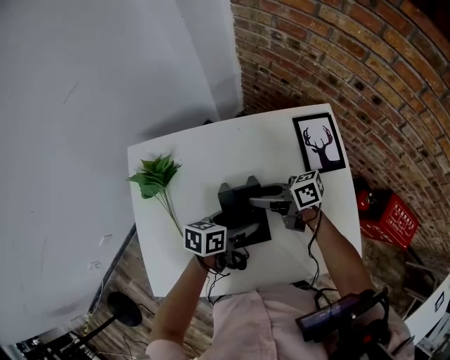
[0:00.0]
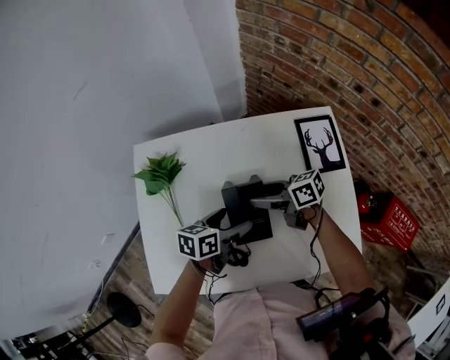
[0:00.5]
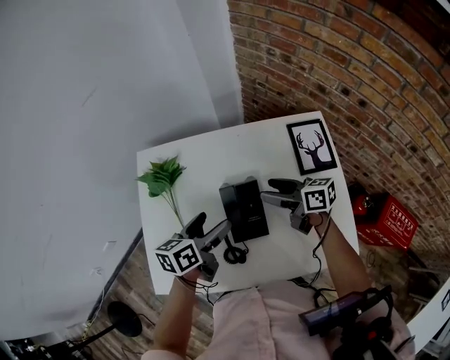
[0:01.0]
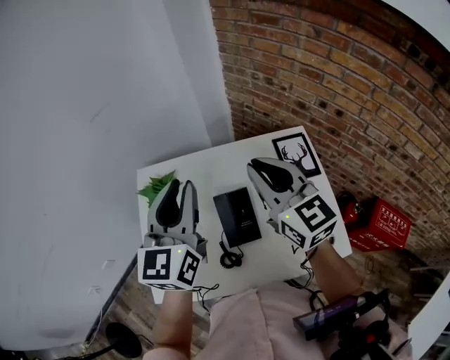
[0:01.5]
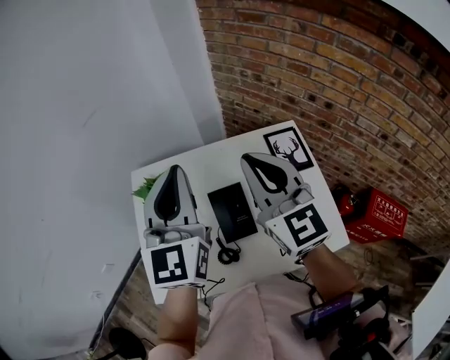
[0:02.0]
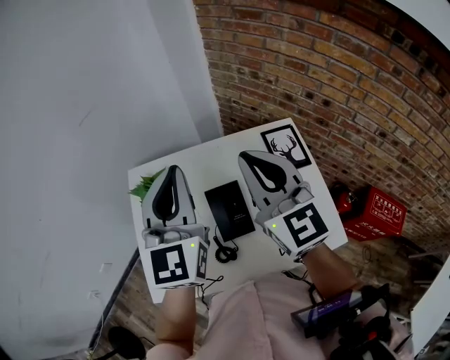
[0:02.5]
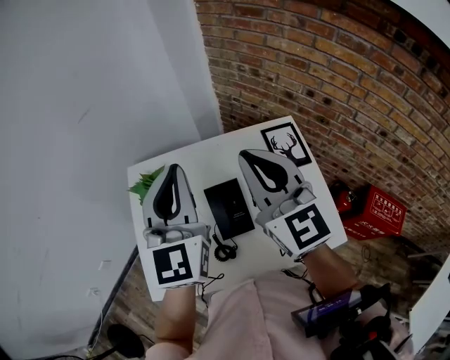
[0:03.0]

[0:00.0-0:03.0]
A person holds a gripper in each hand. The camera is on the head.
0:00.0 to 0:01.5: The two grippers go some 35 cm upward. The left gripper tips its fingers upward by some 30 degrees, and closes. Meanwhile the right gripper changes its angle by some 70 degrees, and closes its fingers.
0:01.5 to 0:03.0: The right gripper moves about 5 cm.

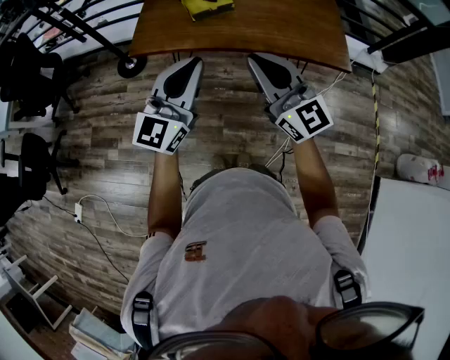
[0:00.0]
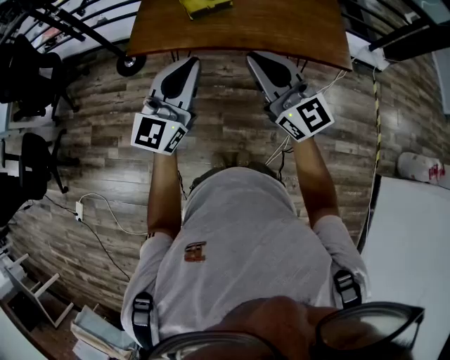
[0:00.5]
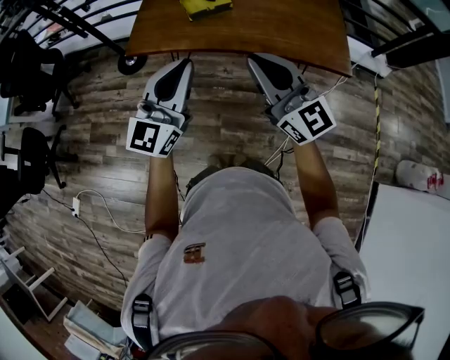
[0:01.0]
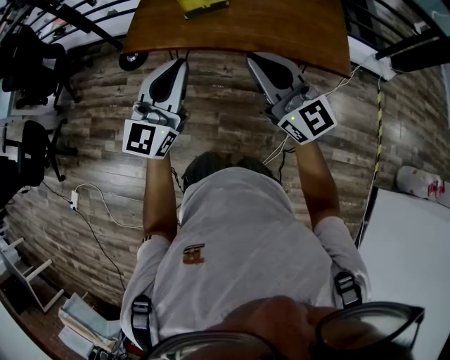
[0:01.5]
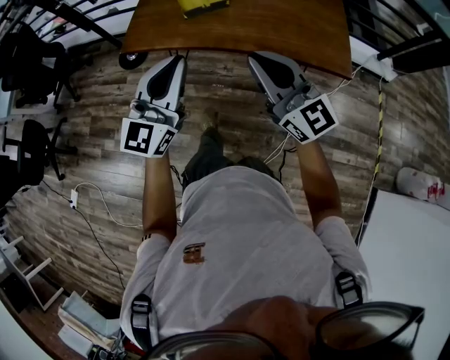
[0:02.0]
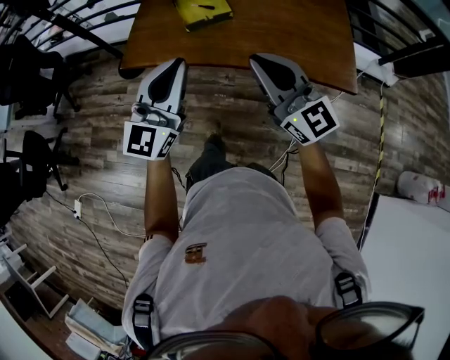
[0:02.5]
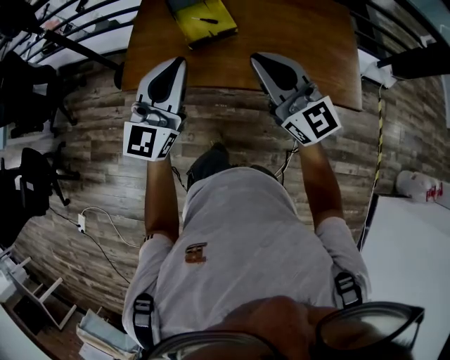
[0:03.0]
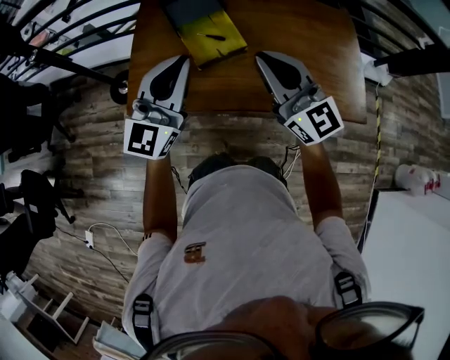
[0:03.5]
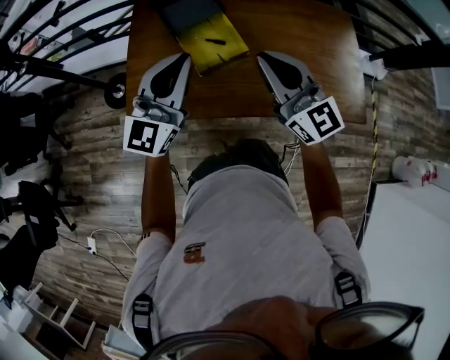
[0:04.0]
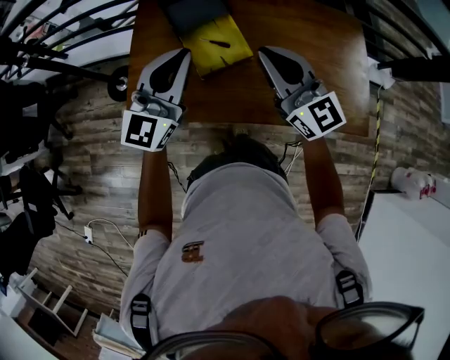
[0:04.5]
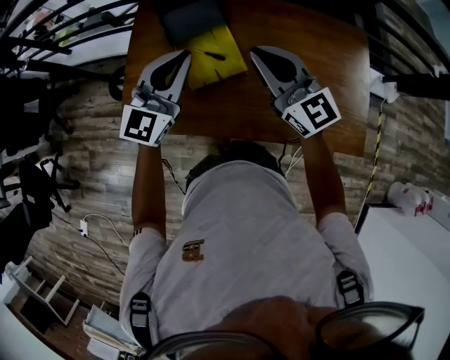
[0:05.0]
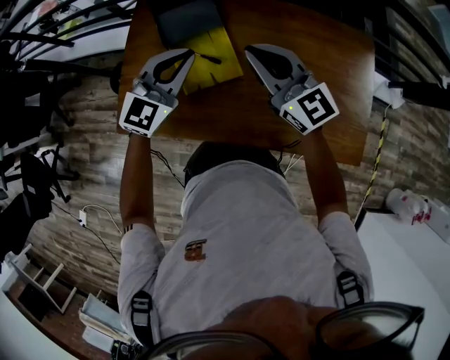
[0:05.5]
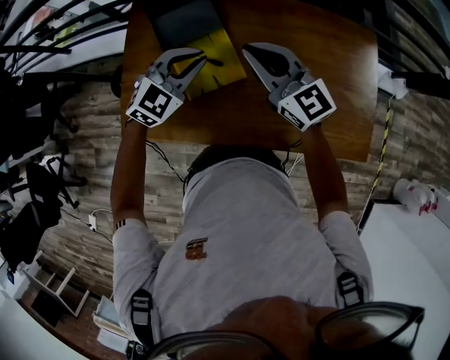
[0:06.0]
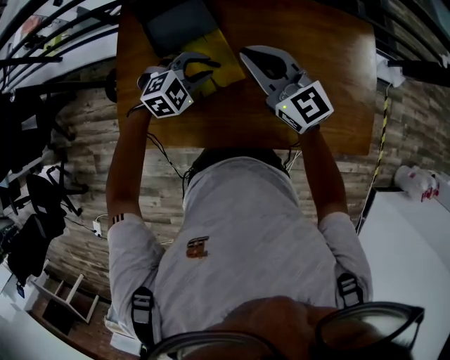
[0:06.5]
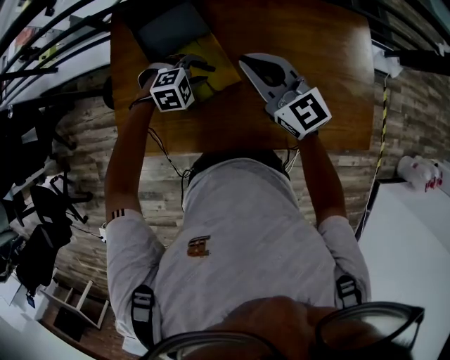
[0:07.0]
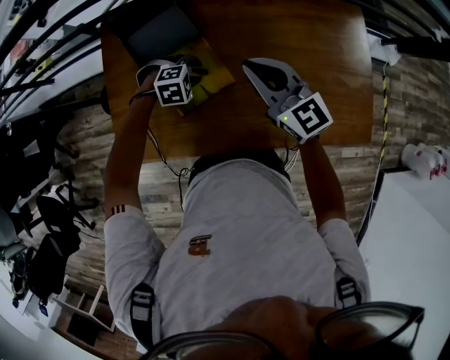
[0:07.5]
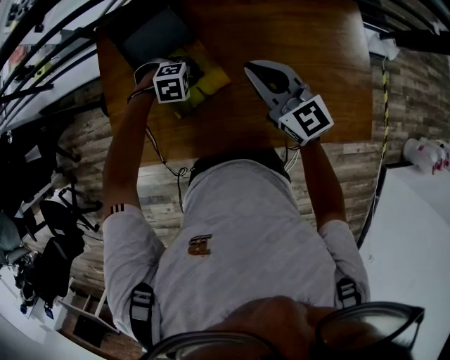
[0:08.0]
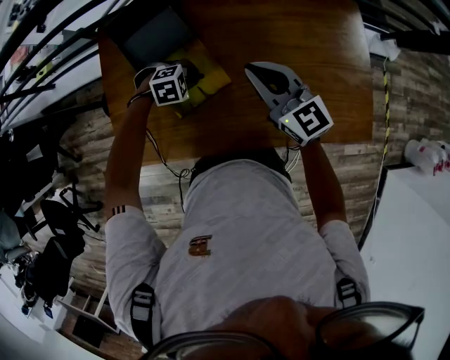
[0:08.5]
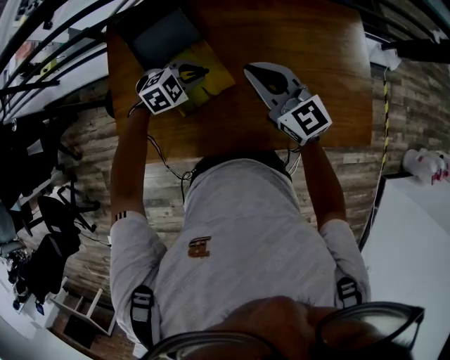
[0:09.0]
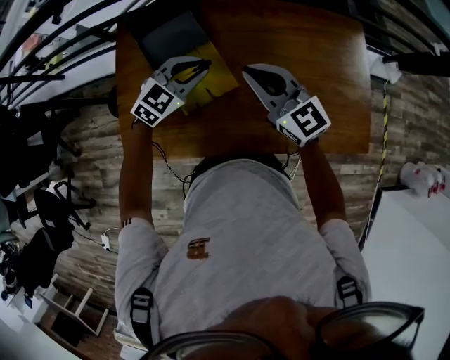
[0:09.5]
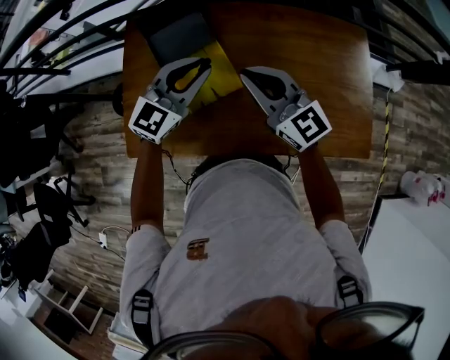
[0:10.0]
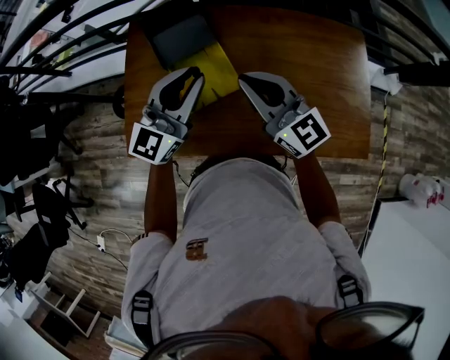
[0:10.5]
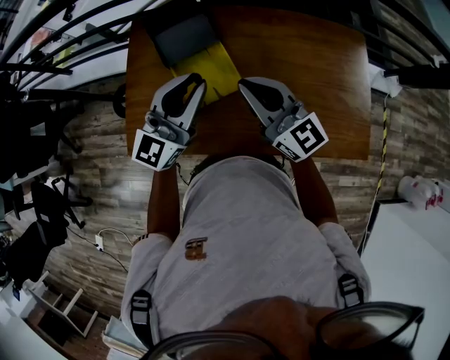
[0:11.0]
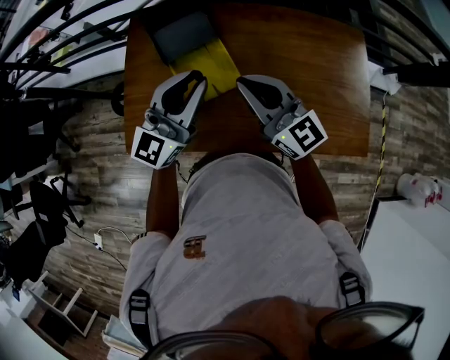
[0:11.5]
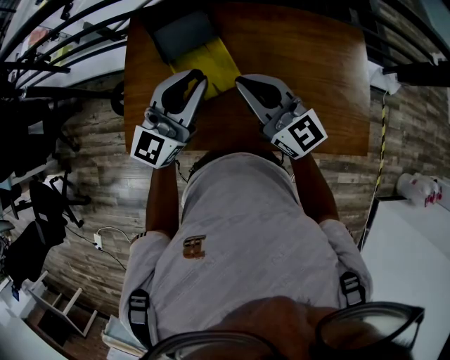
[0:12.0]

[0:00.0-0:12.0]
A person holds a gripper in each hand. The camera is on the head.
0:00.0 to 0:02.0: Both grippers travel together to the right, some 10 cm.
0:02.0 to 0:04.0: The two grippers travel together, forward, some 50 cm.
0:04.0 to 0:06.0: The right gripper heads forward, covering some 25 cm, while the left gripper heads forward, downward and to the right, covering approximately 30 cm, and tilts its fingers roughly 40 degrees downward.
0:06.0 to 0:08.0: The left gripper moves downward, approximately 20 cm, angles its fingers downward, by roughly 50 degrees, and opens its fingers. The right gripper shifts by approximately 10 cm.
0:08.0 to 0:10.0: The right gripper moves approximately 10 cm, while the left gripper is displaced upward by roughly 25 cm, and tilts its fingers roughly 70 degrees upward.
0:10.0 to 0:12.0: The right gripper shifts by approximately 5 cm; the left gripper goes roughly 10 cm upward and backward, and changes its angle by about 20 degrees.

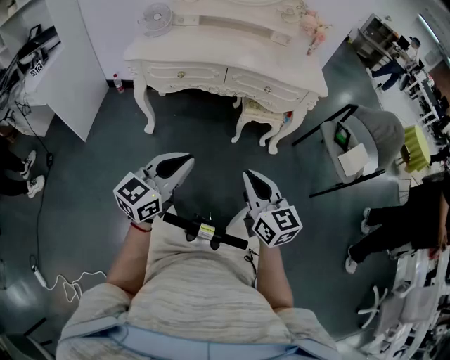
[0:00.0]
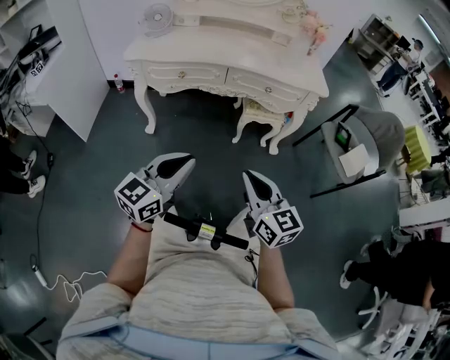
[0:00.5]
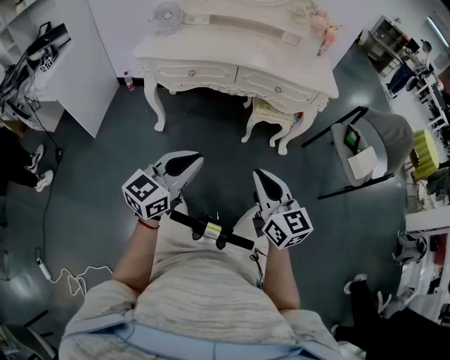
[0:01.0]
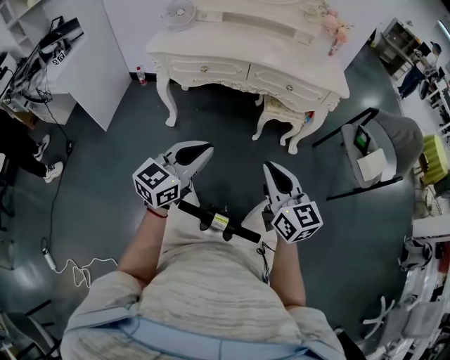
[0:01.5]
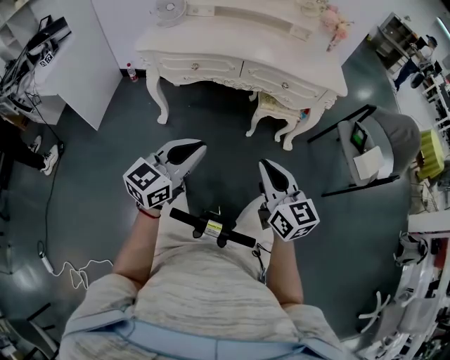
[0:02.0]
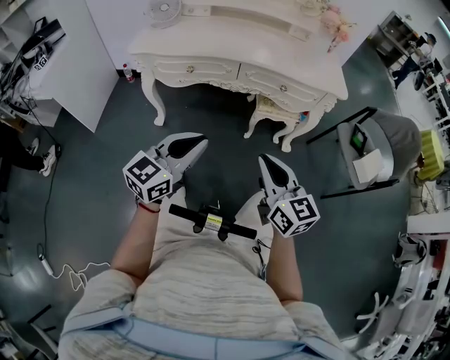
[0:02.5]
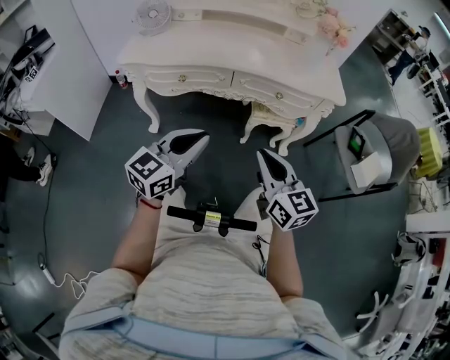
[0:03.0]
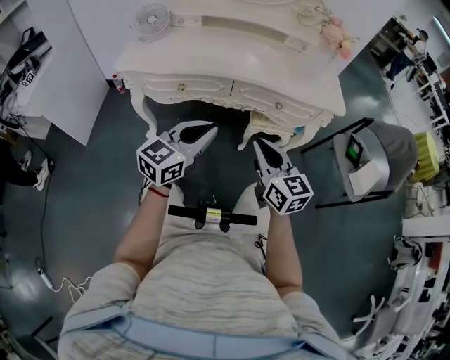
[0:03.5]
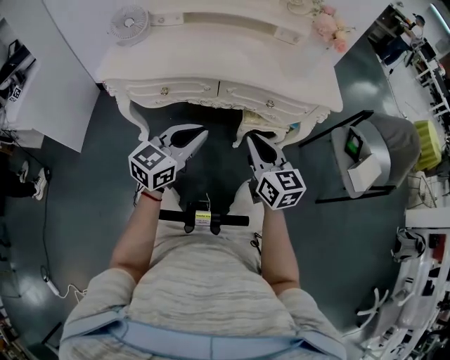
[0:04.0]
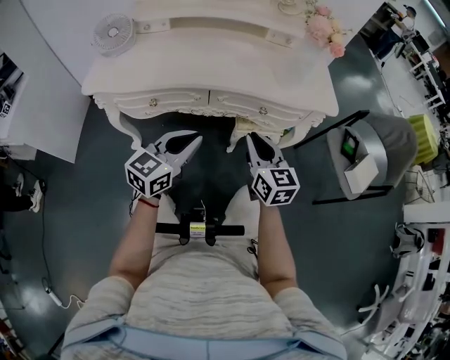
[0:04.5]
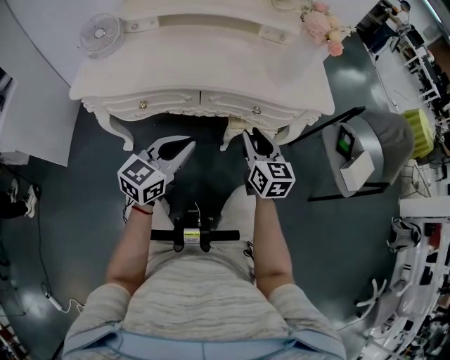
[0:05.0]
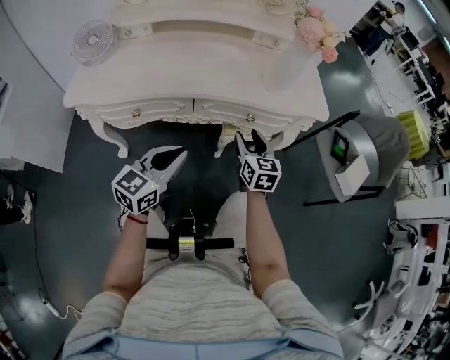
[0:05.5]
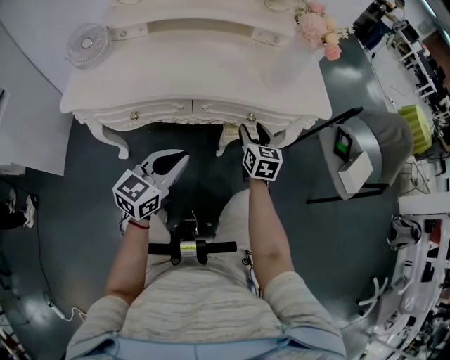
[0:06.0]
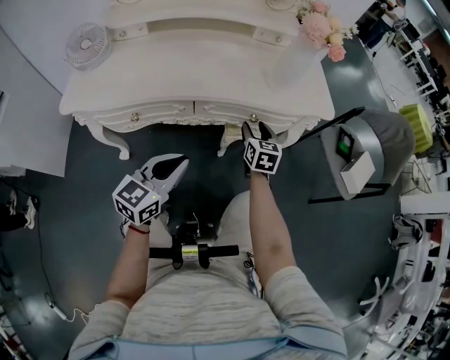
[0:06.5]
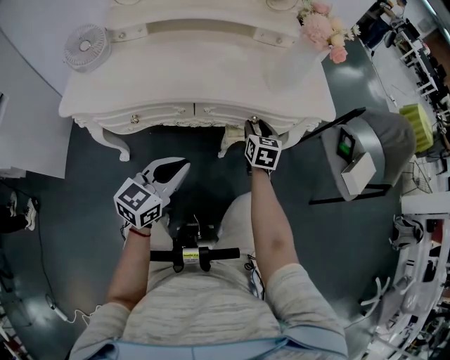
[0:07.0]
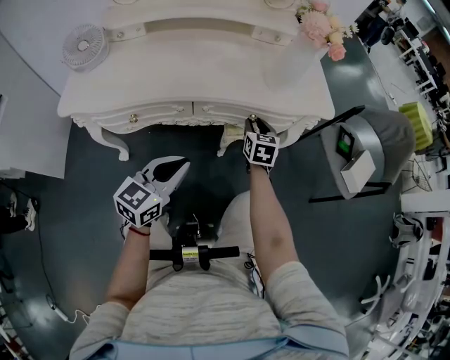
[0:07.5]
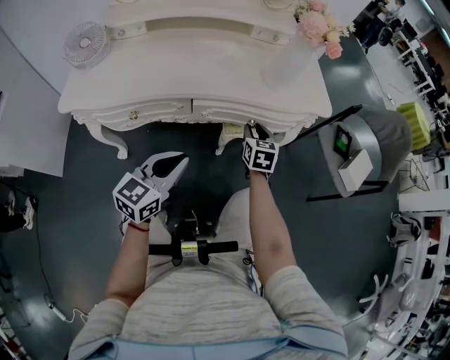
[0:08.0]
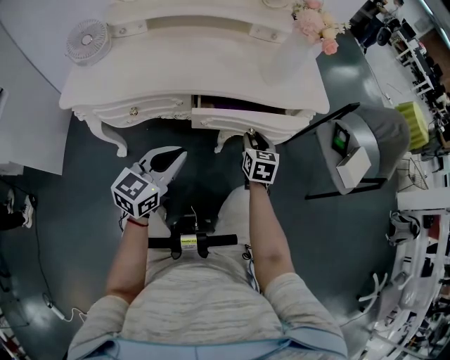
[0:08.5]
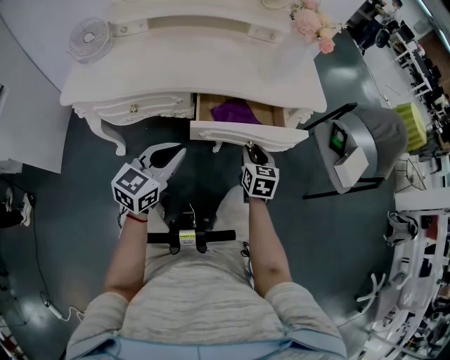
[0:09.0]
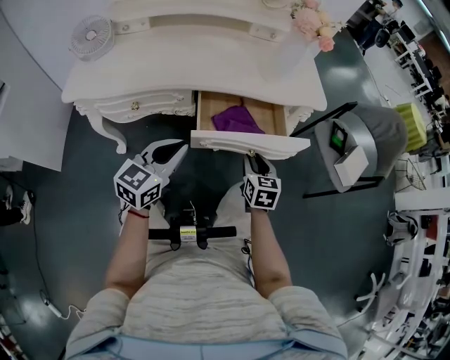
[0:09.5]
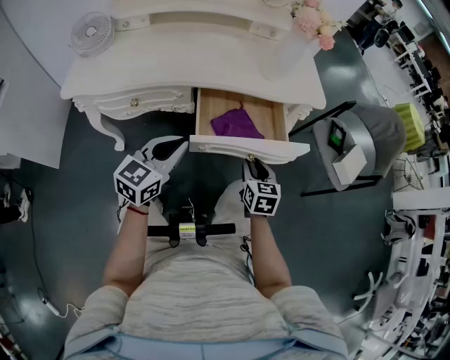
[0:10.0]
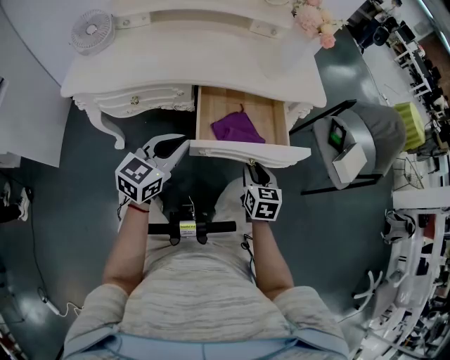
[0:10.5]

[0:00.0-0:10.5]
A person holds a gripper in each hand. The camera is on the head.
0:00.0 to 0:02.0: There are only small adjustments of the grippers.
0:02.0 to 0:04.0: Both grippers move forward, some 25 cm.
0:04.0 to 0:06.5: The left gripper goes about 5 cm downward. The right gripper is displaced forward and downward by some 25 cm, rotates approximately 30 degrees, and opens.
0:06.5 to 0:08.5: The right gripper travels backward by about 5 cm.
0:08.5 to 0:10.5: The right gripper travels backward by approximately 15 cm.

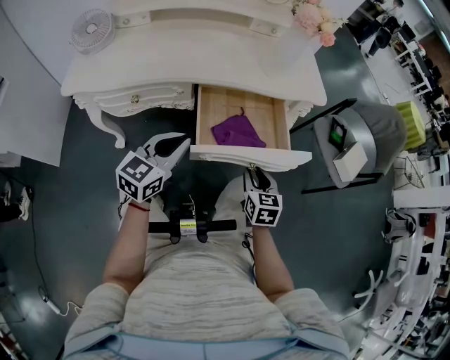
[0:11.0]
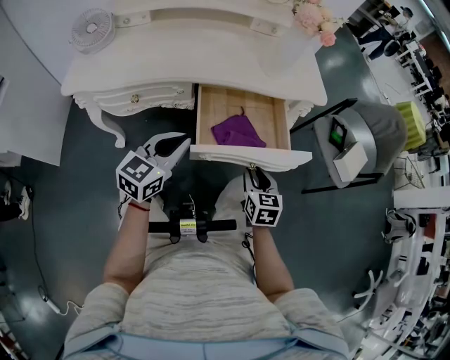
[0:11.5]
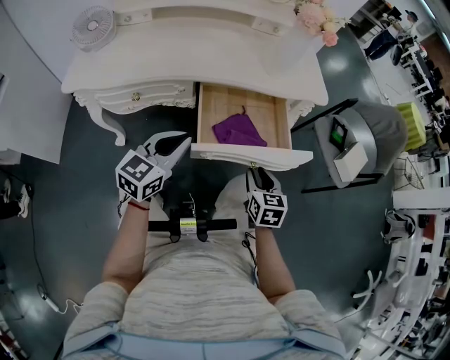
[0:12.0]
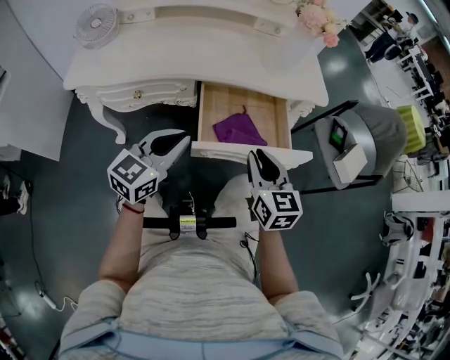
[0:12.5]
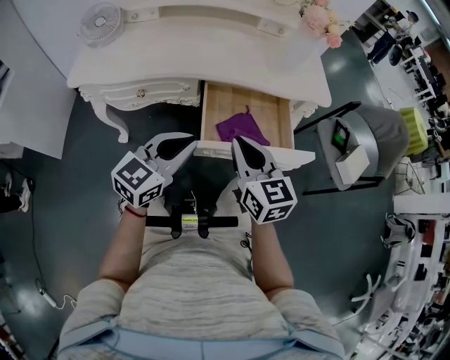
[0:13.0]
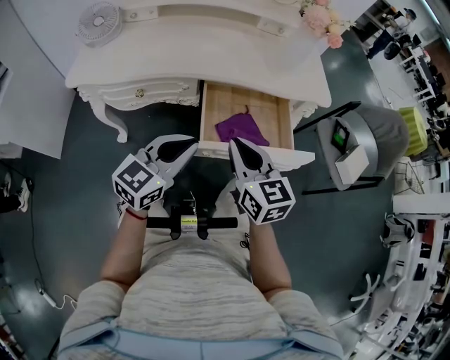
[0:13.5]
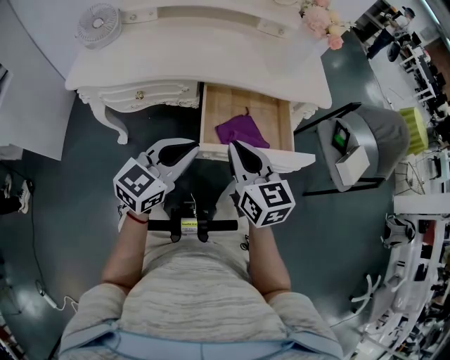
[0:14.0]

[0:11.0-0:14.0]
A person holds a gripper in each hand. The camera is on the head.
0:11.0 to 0:12.5: The right gripper is displaced upward by some 15 cm.
0:12.5 to 0:14.0: The right gripper shifts roughly 5 cm to the left.
